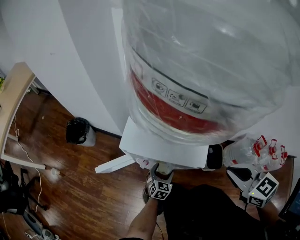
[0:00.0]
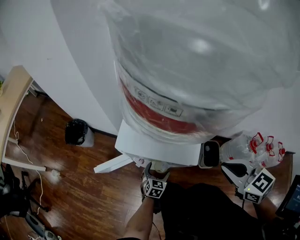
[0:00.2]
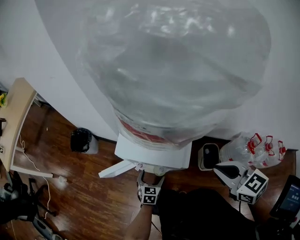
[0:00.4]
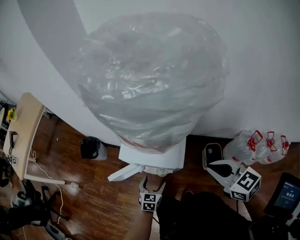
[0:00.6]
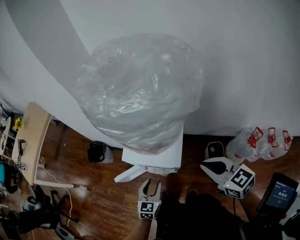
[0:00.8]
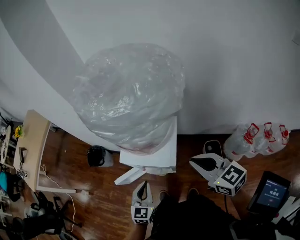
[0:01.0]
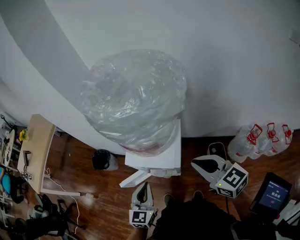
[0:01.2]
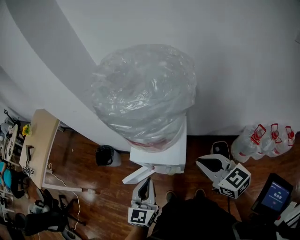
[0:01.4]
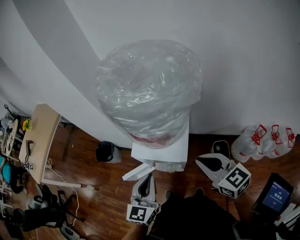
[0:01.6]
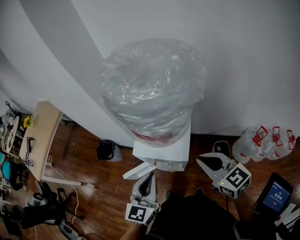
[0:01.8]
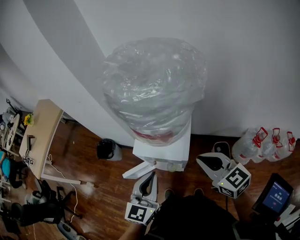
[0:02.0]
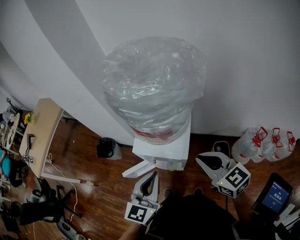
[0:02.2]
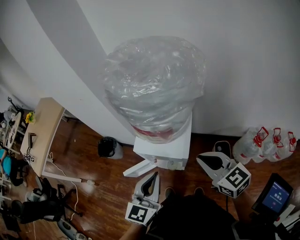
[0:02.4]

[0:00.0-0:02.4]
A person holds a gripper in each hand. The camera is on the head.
0:00.0 to 0:01.2: The left gripper heads upward, covering about 40 cm, swivels some 20 degrees, and closes up. Meanwhile the right gripper moves upward, roughly 15 cm, and swivels approximately 20 degrees.
0:01.2 to 0:02.4: The left gripper shifts roughly 10 cm upward.

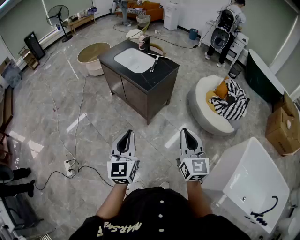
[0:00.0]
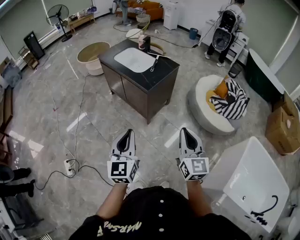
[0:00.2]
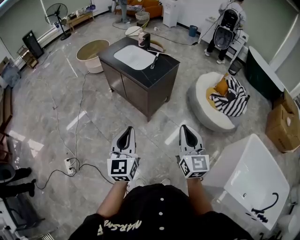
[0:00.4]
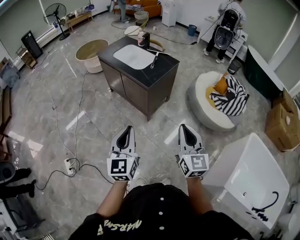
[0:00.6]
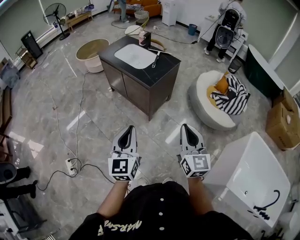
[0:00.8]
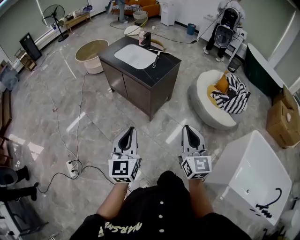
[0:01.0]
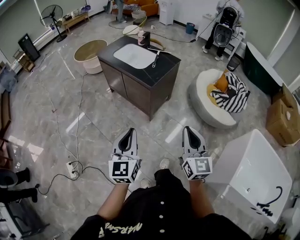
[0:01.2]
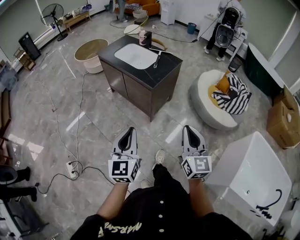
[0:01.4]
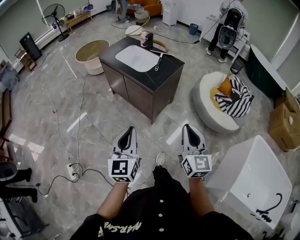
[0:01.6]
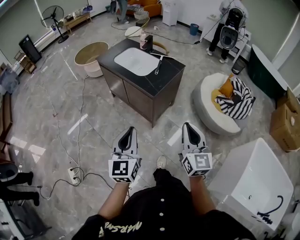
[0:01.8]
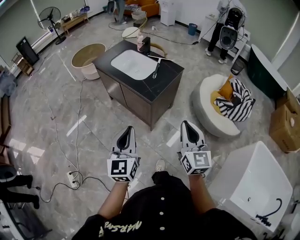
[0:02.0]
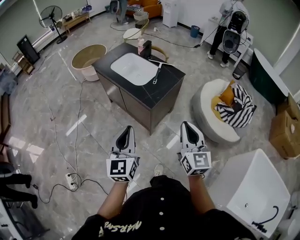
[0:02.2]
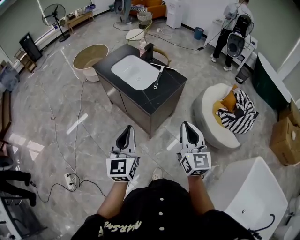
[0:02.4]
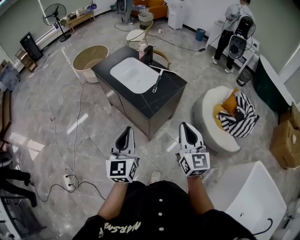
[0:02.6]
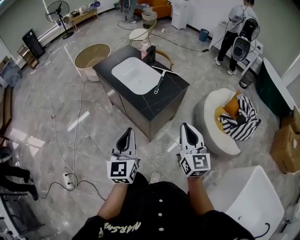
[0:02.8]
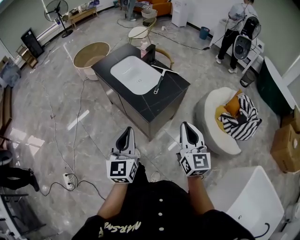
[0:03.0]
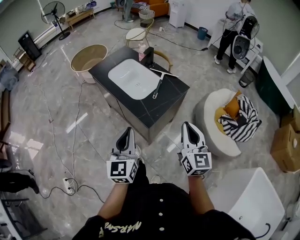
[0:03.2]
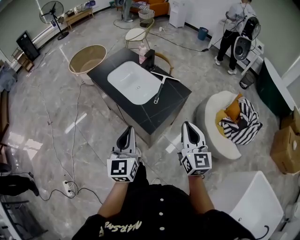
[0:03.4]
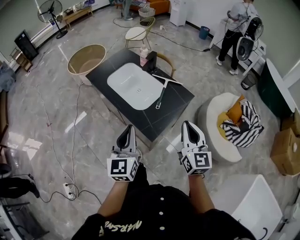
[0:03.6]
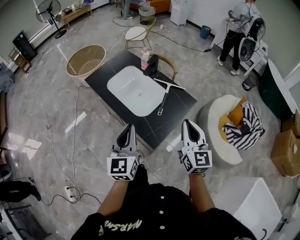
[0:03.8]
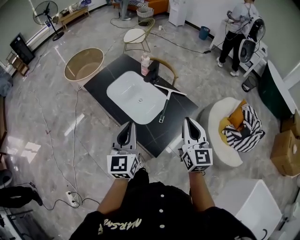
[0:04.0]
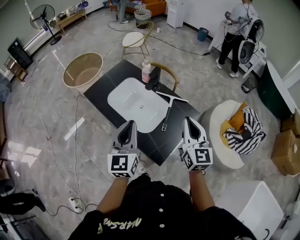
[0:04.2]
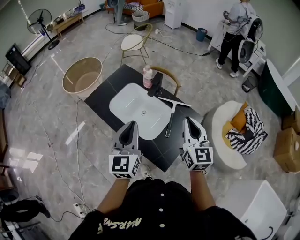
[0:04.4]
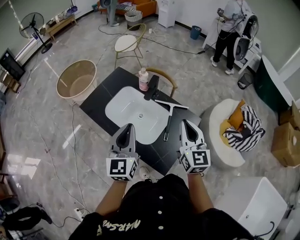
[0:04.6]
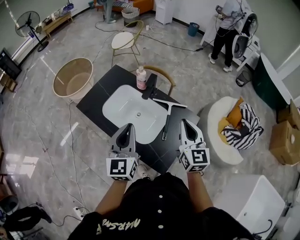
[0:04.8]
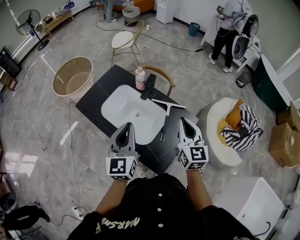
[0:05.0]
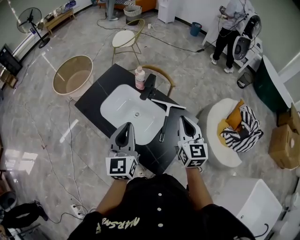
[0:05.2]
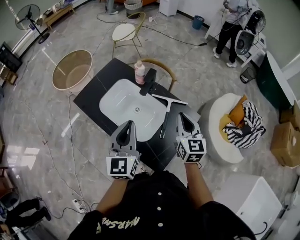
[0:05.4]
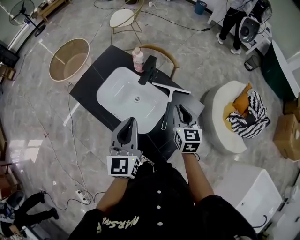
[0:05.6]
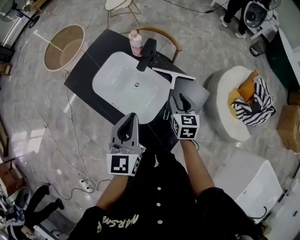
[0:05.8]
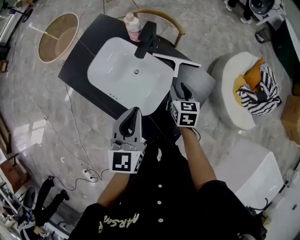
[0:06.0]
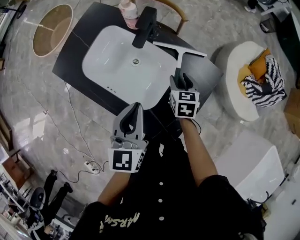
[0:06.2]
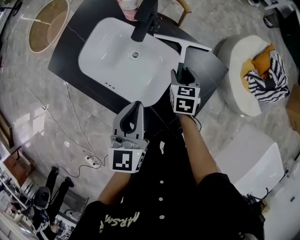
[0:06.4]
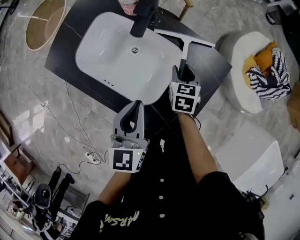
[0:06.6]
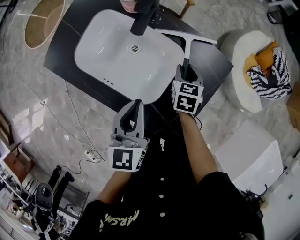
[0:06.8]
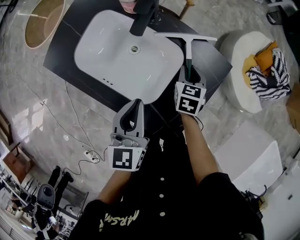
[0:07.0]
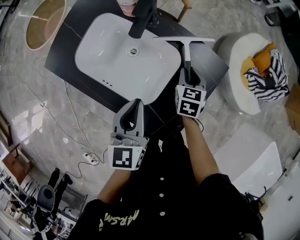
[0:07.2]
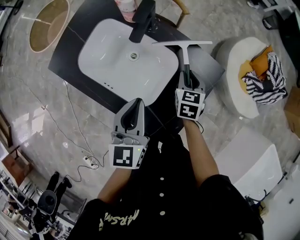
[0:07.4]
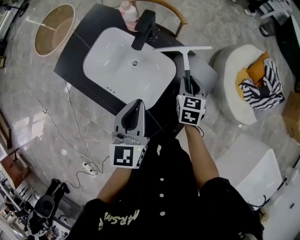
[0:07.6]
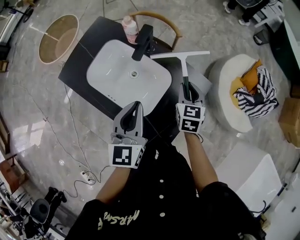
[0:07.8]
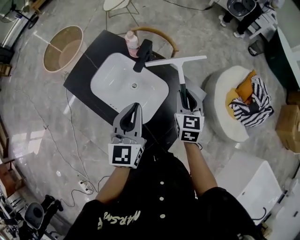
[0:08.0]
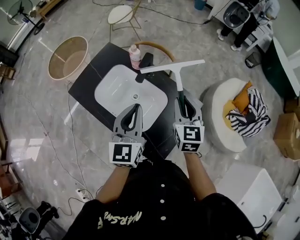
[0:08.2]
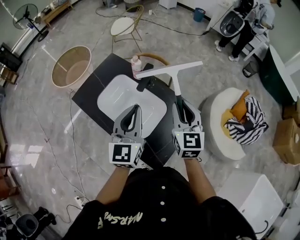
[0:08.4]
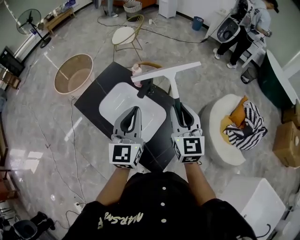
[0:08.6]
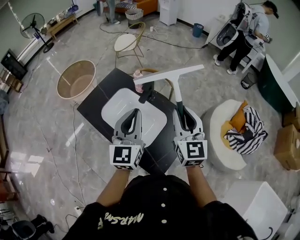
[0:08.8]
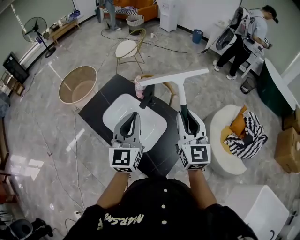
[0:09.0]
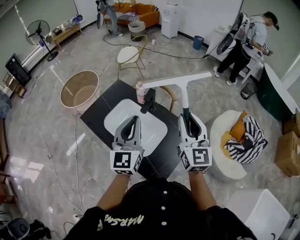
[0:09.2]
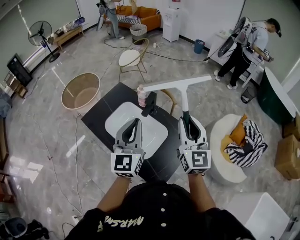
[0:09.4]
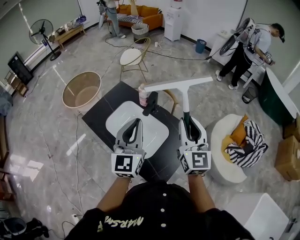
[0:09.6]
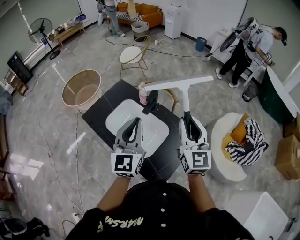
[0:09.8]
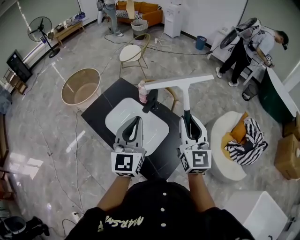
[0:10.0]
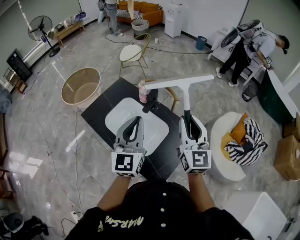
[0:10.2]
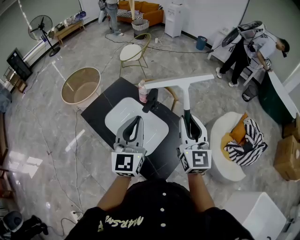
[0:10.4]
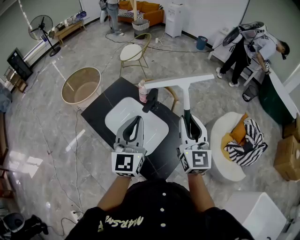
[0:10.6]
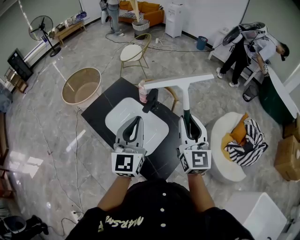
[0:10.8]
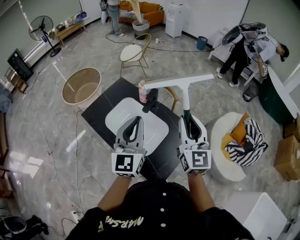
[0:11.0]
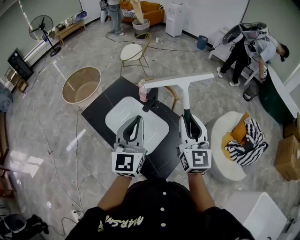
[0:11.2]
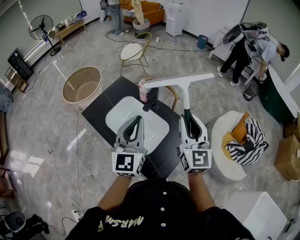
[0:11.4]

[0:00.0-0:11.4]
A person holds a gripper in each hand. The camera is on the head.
0:00.0 to 0:01.4: The left gripper ends up about 5 cm from where it was. Meanwhile the right gripper shifts by roughly 5 cm.
0:01.4 to 0:02.8: Both grippers move forward, about 30 cm.
0:02.8 to 0:04.2: Both grippers travel together forward, some 35 cm.
0:04.2 to 0:05.6: The left gripper travels forward by approximately 10 cm. Meanwhile the right gripper is displaced downward and forward by roughly 20 cm, and changes its angle by roughly 20 degrees.
0:05.6 to 0:07.2: Both grippers travel together downward, about 20 cm. The right gripper rotates about 30 degrees, and opens and closes again.
0:07.2 to 0:08.6: The right gripper travels upward by roughly 35 cm, and angles its fingers upward, by approximately 40 degrees; the left gripper moves upward, about 20 cm, and turns by roughly 20 degrees.
0:08.6 to 0:10.0: The right gripper goes about 5 cm upward.
0:10.0 to 0:11.4: Both grippers stay put.

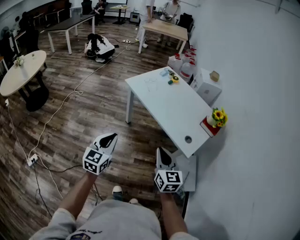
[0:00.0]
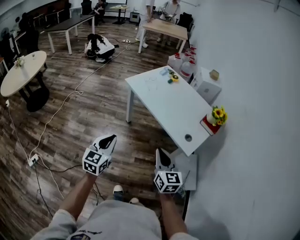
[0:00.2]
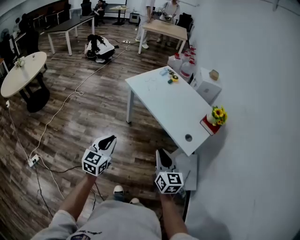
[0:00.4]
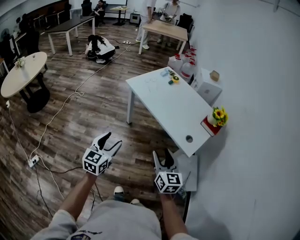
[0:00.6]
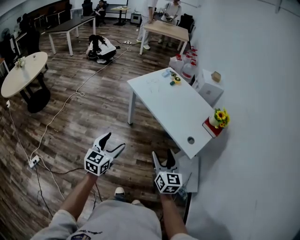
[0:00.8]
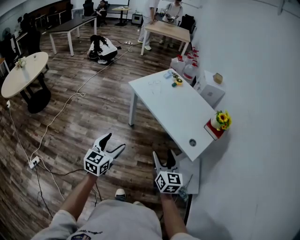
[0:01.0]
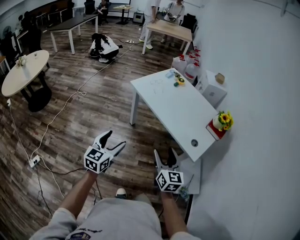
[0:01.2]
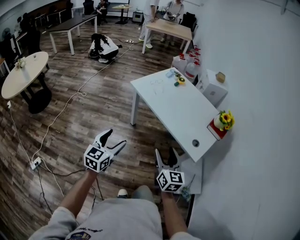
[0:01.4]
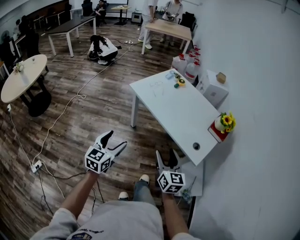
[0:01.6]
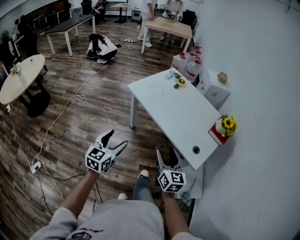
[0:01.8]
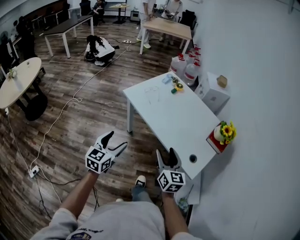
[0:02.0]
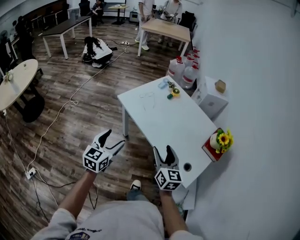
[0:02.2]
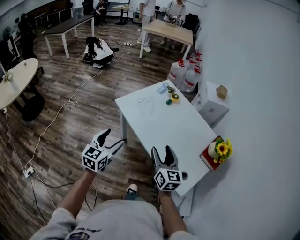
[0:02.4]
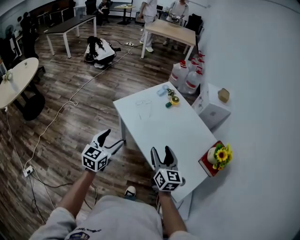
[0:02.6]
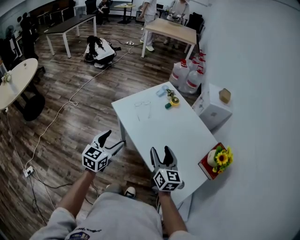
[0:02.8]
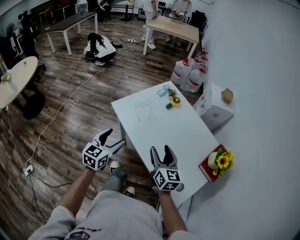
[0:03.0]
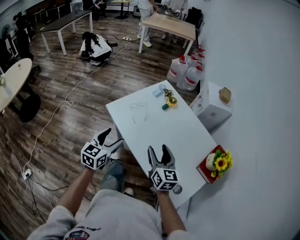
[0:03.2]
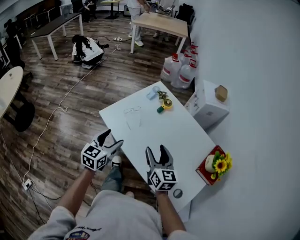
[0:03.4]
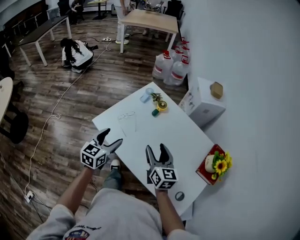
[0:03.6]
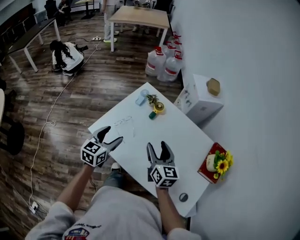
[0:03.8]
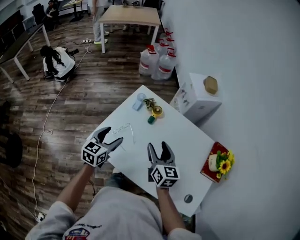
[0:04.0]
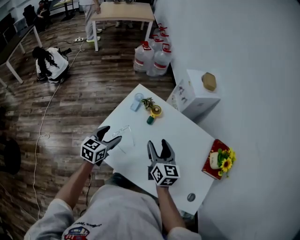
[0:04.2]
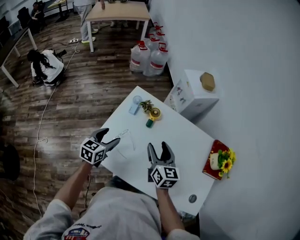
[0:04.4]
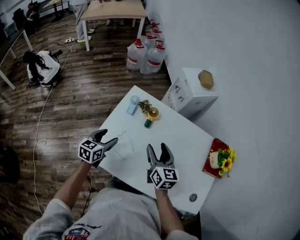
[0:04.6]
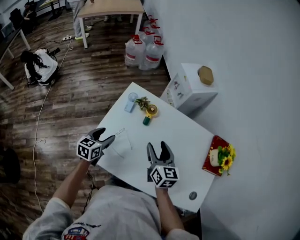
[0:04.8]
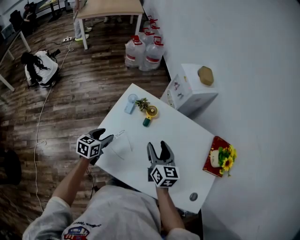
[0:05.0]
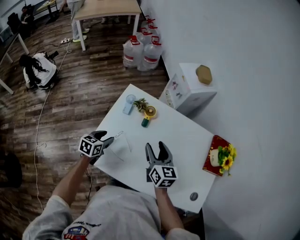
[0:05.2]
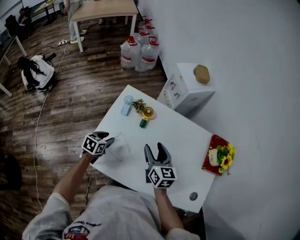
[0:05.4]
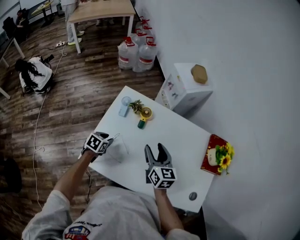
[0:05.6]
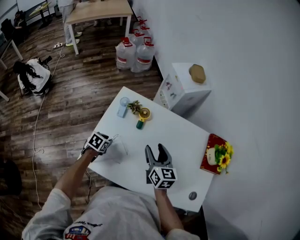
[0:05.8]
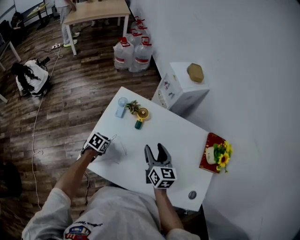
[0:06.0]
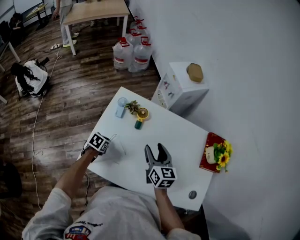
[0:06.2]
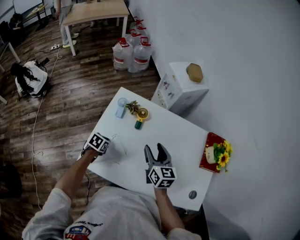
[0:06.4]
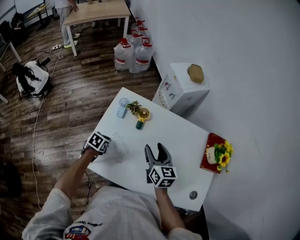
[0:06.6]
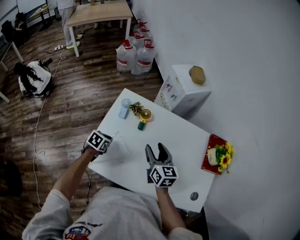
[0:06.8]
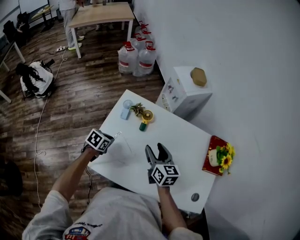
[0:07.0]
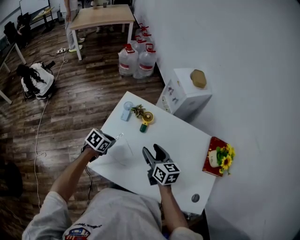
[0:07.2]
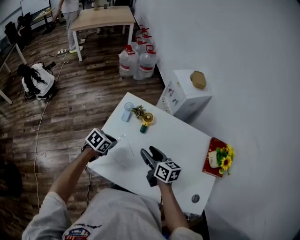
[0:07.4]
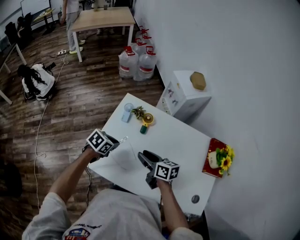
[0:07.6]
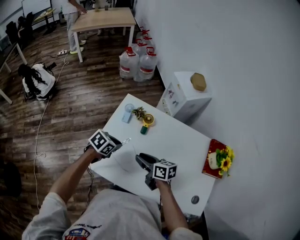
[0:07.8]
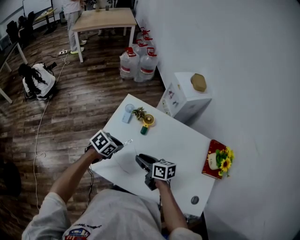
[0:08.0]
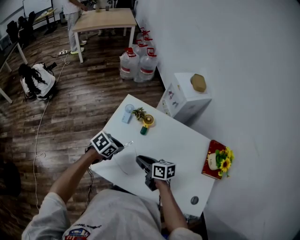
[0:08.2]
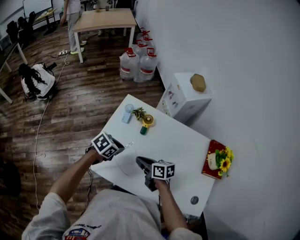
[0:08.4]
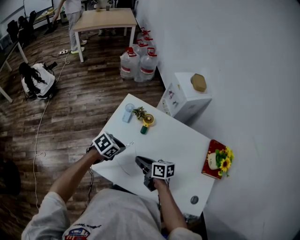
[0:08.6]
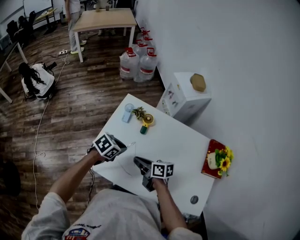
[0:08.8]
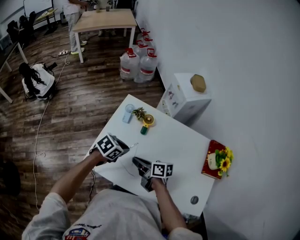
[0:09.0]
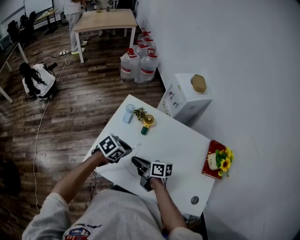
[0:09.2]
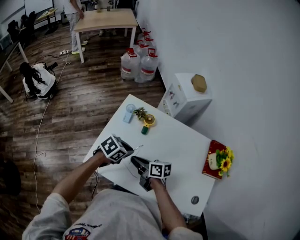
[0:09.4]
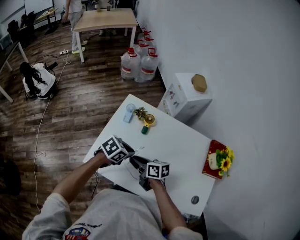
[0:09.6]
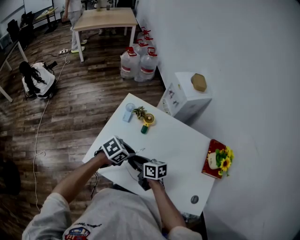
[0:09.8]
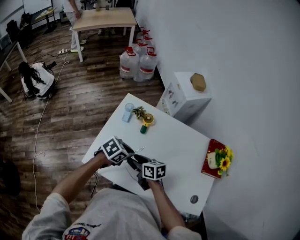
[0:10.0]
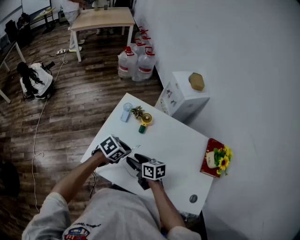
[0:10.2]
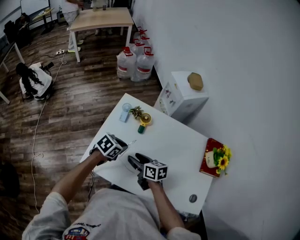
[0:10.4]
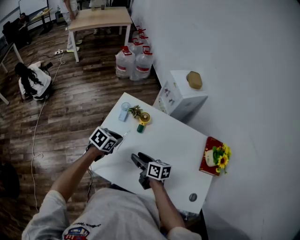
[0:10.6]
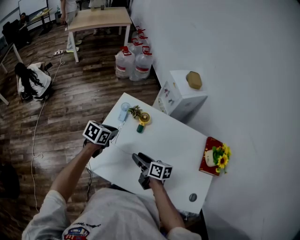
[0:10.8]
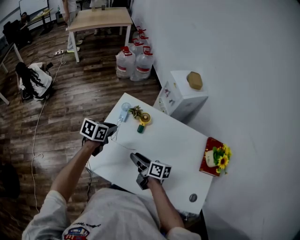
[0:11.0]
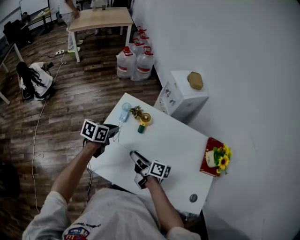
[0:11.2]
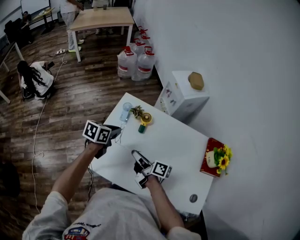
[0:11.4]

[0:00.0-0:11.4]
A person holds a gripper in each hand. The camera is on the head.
0:00.0 to 0:01.4: The right gripper ends up about 5 cm from where it was, and opens up. Meanwhile the left gripper moves approximately 5 cm, and opens up.
0:01.4 to 0:02.8: The two grippers go about 40 cm forward.
0:02.8 to 0:04.2: The right gripper changes place by approximately 35 cm, and turns by approximately 20 degrees. The left gripper ends up about 40 cm from where it was, and turns by about 30 degrees.
0:04.2 to 0:05.6: The right gripper goes approximately 5 cm forward; the left gripper shifts about 15 cm downward and forward, changes its angle by about 30 degrees, and closes its fingers.
0:05.6 to 0:07.2: The left gripper is displaced upward by some 5 cm, and closes its fingers.
0:07.2 to 0:08.6: The left gripper ends up about 10 cm from where it was. Meanwhile the right gripper ends up roughly 10 cm from where it was, changes its angle by some 30 degrees, and closes.
0:08.6 to 0:10.0: The right gripper opens. The left gripper moves roughly 5 cm.
0:10.0 to 0:11.4: The right gripper heads upward, covering some 5 cm, and rotates some 40 degrees, while the left gripper changes place by approximately 15 cm, and turns by roughly 30 degrees.
